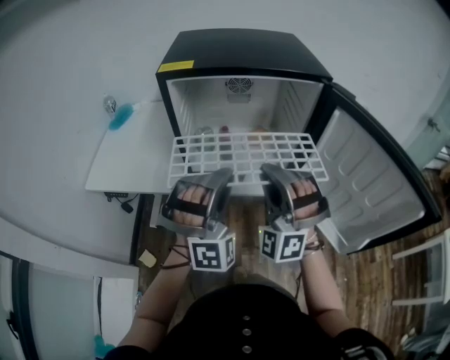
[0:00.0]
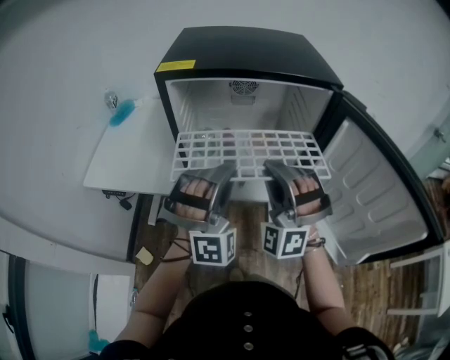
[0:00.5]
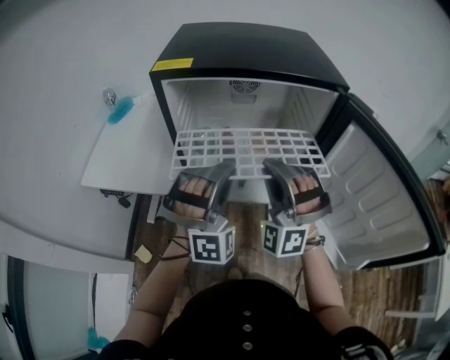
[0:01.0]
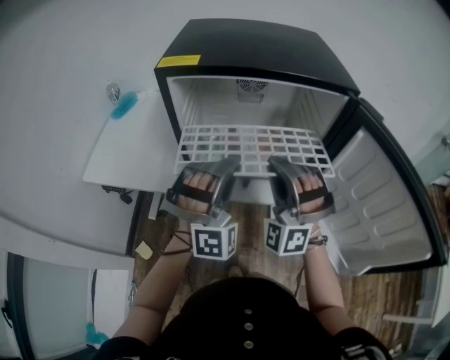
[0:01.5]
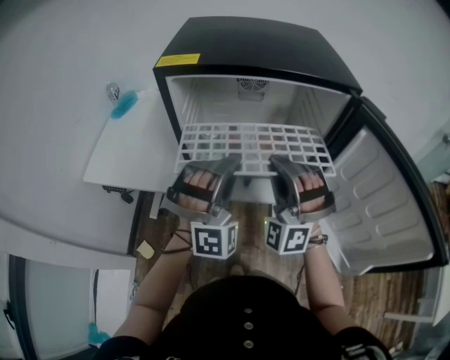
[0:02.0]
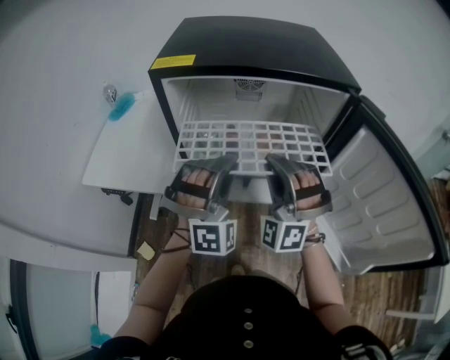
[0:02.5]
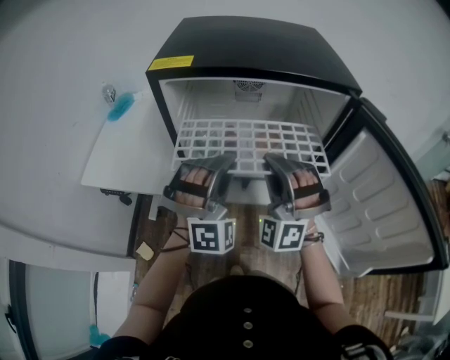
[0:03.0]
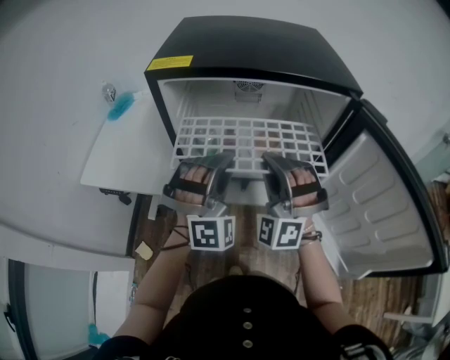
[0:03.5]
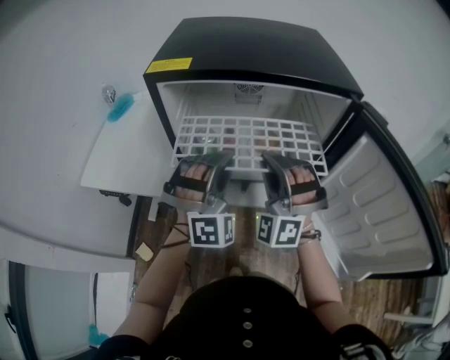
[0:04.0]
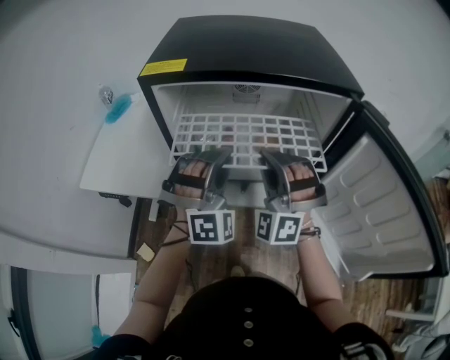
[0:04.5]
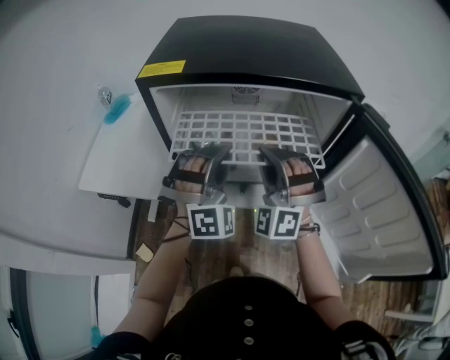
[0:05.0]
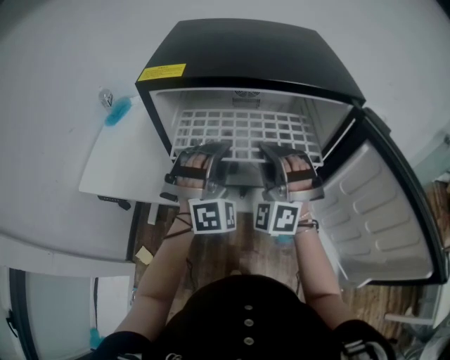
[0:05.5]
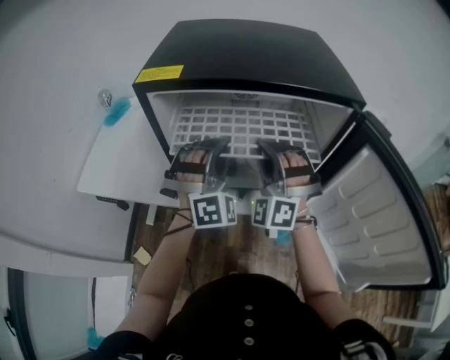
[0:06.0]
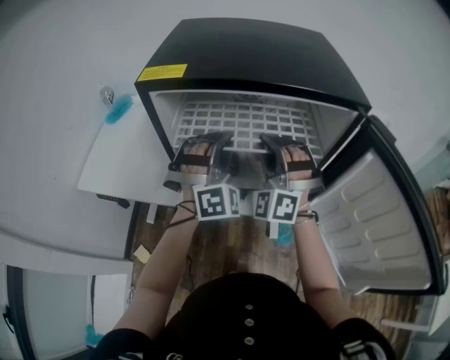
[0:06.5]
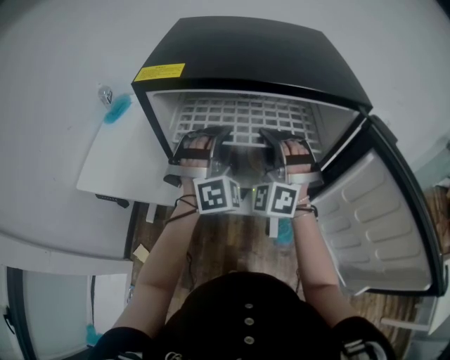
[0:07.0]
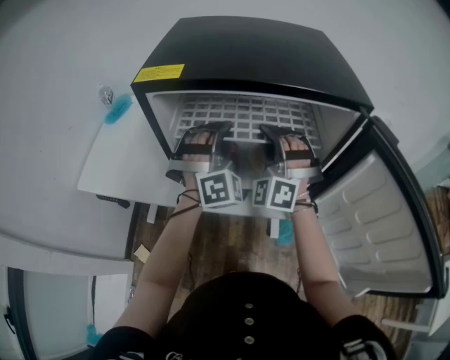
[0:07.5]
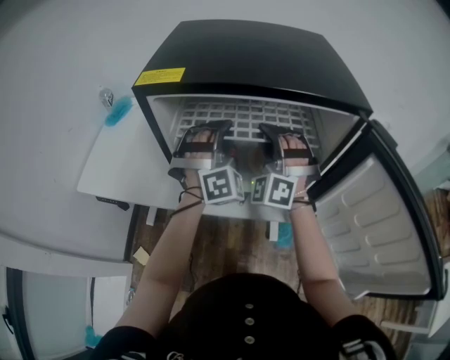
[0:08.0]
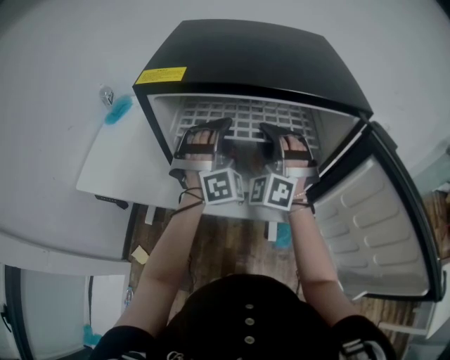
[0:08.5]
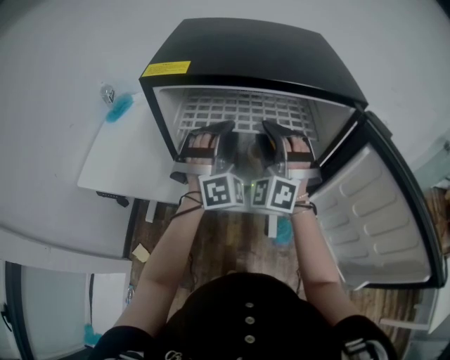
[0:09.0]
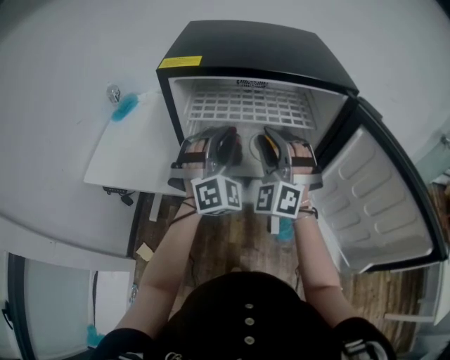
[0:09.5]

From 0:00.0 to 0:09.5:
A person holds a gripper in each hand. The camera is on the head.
From 0:00.0 to 0:02.0: The left gripper ends up roughly 10 cm from where it was.
From 0:04.0 to 0:05.5: The left gripper moves roughly 5 cm.
From 0:05.5 to 0:07.5: The left gripper shifts by roughly 5 cm.
From 0:07.5 to 0:09.5: The left gripper shifts by about 10 cm.

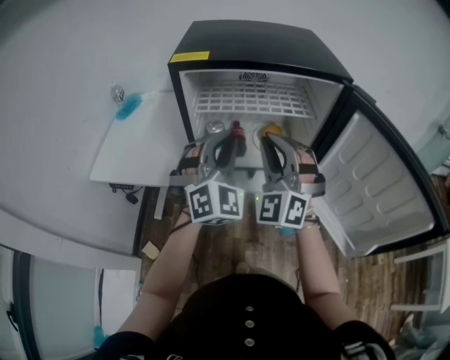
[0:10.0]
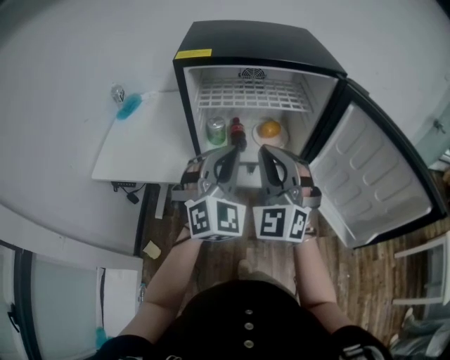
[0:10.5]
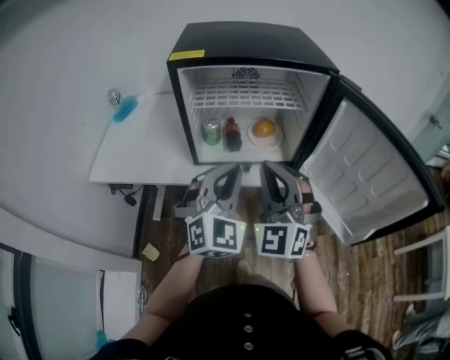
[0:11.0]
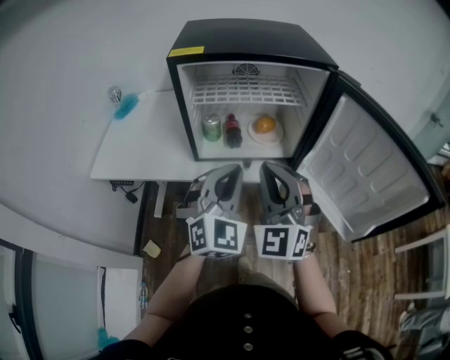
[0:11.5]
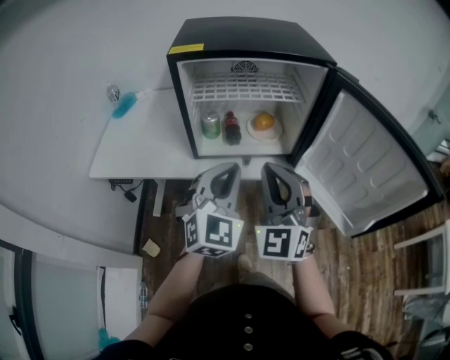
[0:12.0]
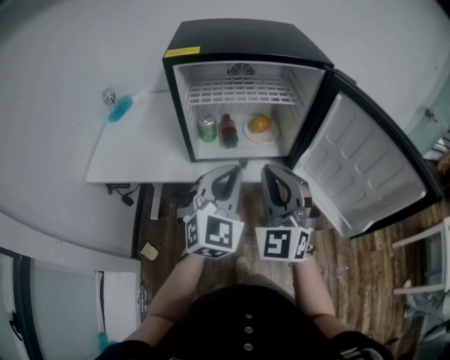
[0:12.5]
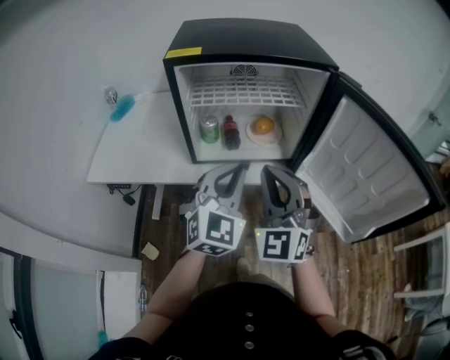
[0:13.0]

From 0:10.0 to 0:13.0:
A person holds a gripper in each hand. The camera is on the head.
From 0:10.0 to 0:11.5: The left gripper changes place by some 10 cm.

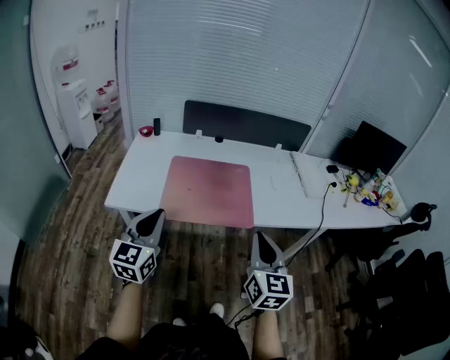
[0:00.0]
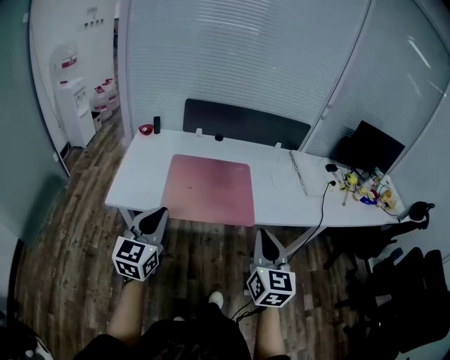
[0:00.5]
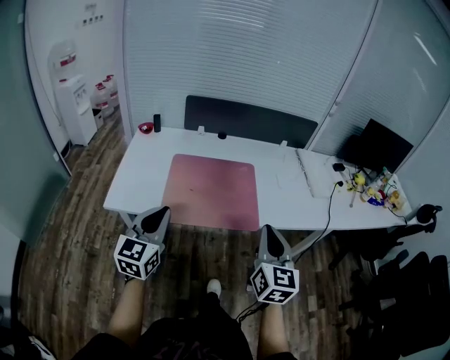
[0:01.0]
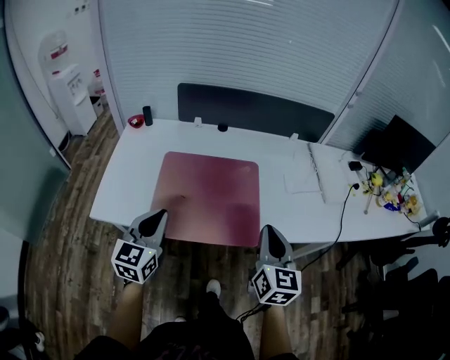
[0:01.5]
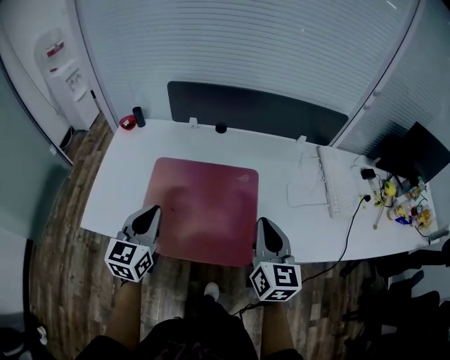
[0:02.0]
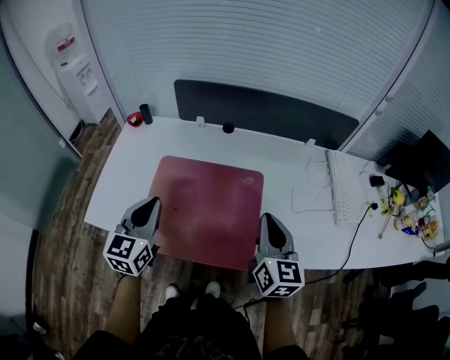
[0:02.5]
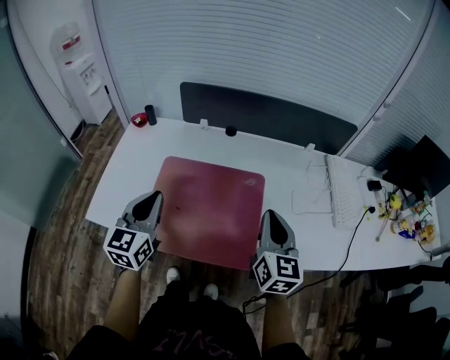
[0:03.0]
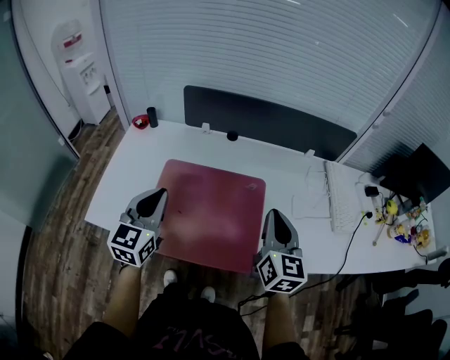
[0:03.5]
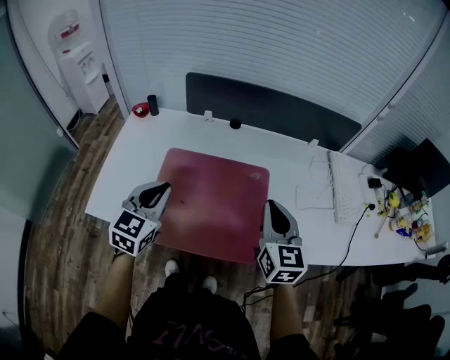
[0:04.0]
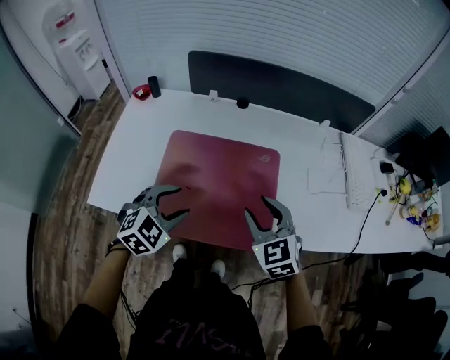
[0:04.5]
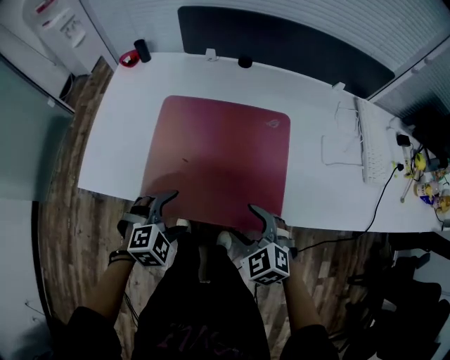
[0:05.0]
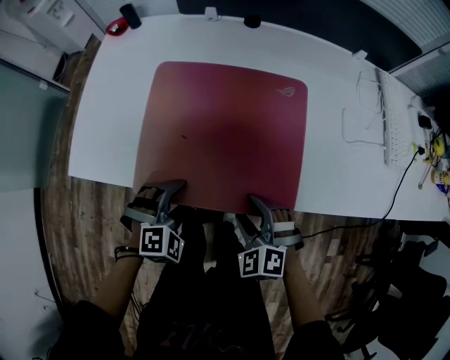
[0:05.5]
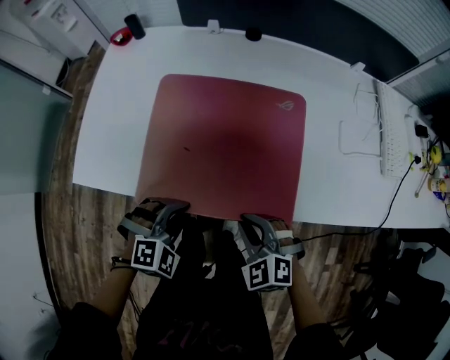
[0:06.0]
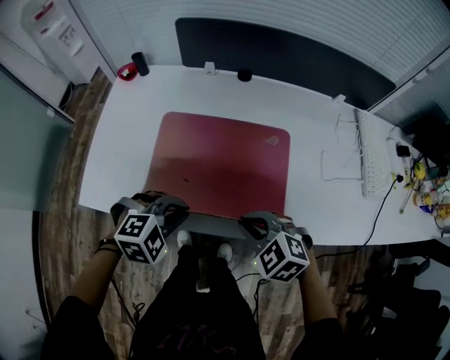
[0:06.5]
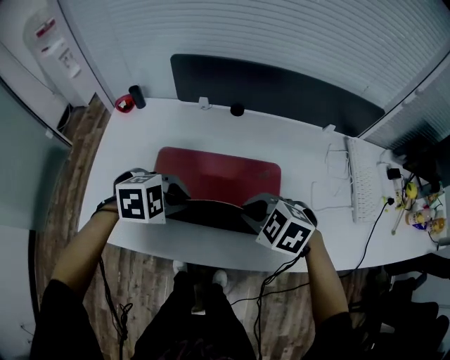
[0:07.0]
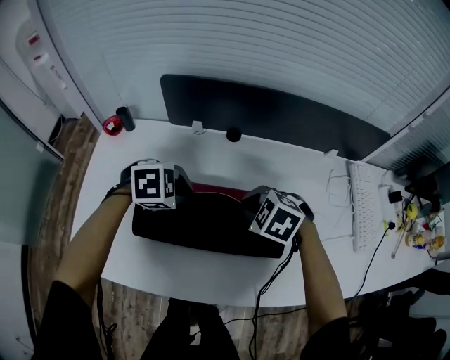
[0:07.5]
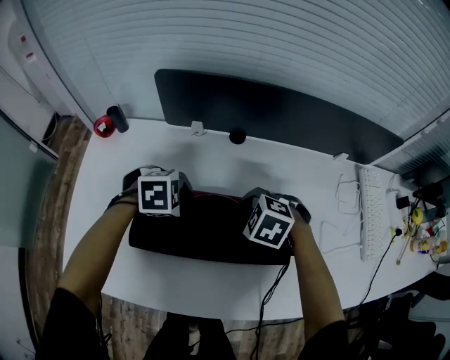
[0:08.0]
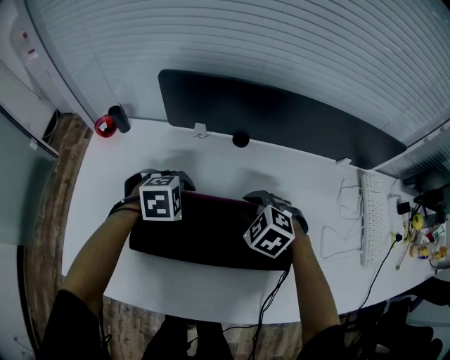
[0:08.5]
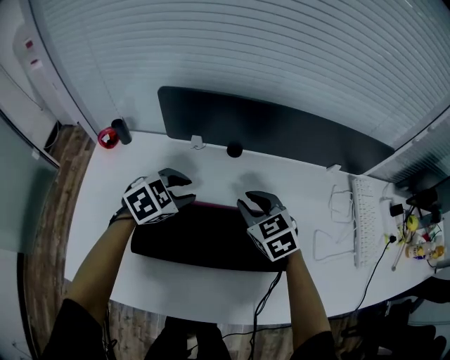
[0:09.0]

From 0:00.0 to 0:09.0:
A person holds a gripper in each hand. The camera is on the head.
From 0:00.0 to 0:02.0: The two grippers go some 30 cm forward.
From 0:02.0 to 0:04.5: The right gripper moves to the left and downward, approximately 10 cm, turns by some 40 degrees, and opens; the left gripper goes some 5 cm downward, swivels some 50 degrees, and opens.
From 0:04.5 to 0:07.0: The left gripper goes downward and returns, approximately 15 cm each way, changes its angle by some 40 degrees, and closes. Meanwhile the right gripper reaches about 20 cm downward, then returns, turns by some 40 degrees, and closes its fingers.
From 0:07.0 to 0:09.0: The left gripper shifts by approximately 25 cm, and turns by some 30 degrees, while the right gripper moves approximately 10 cm downward and comes back, and rotates roughly 40 degrees.

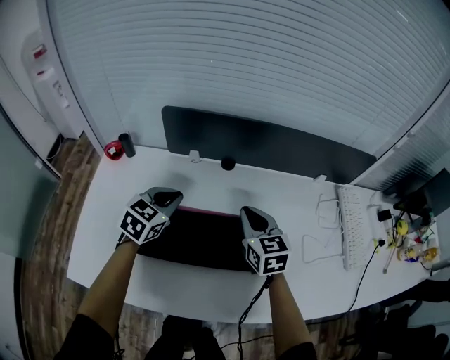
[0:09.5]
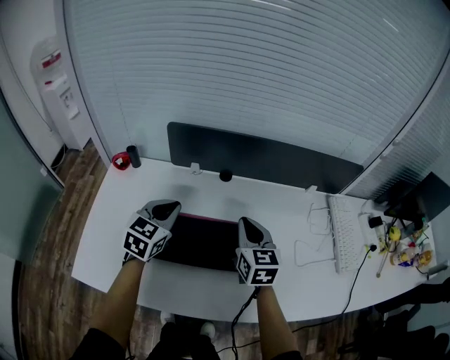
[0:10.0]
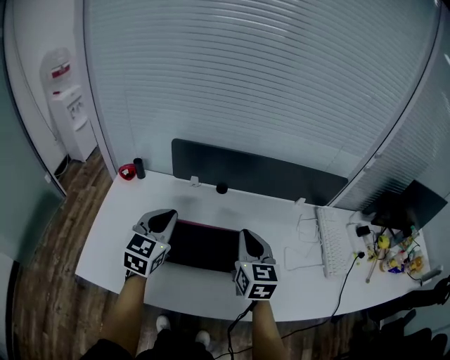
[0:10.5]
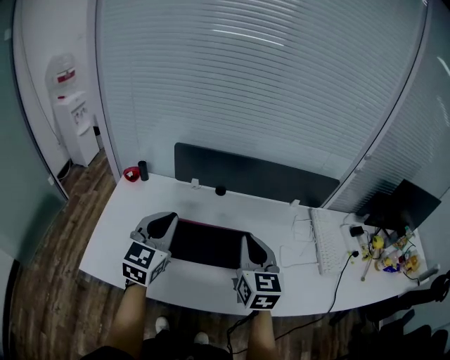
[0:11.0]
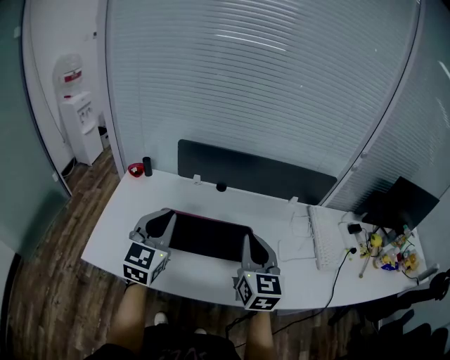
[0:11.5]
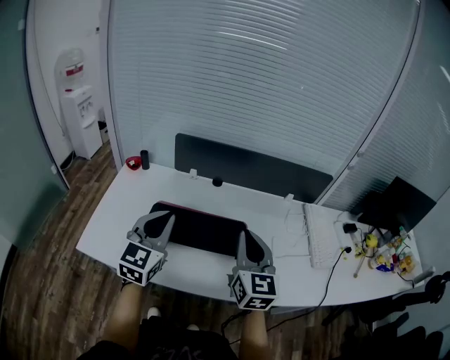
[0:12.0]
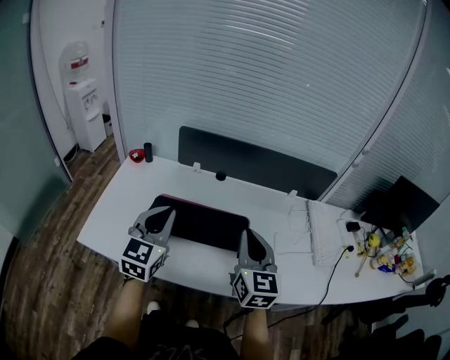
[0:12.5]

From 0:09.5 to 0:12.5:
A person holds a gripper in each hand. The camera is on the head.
From 0:09.5 to 0:11.0: The right gripper shifts roughly 25 cm backward and upward; the left gripper shifts about 25 cm upward and backward, and turns by some 30 degrees.
From 0:11.0 to 0:12.5: The grippers both shift backward by roughly 5 cm.

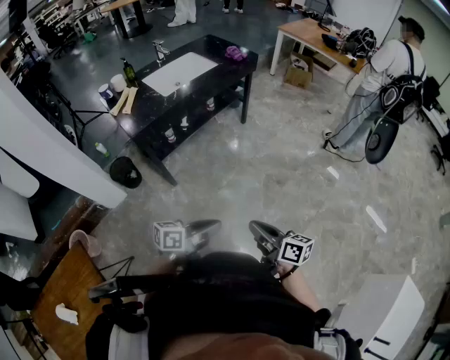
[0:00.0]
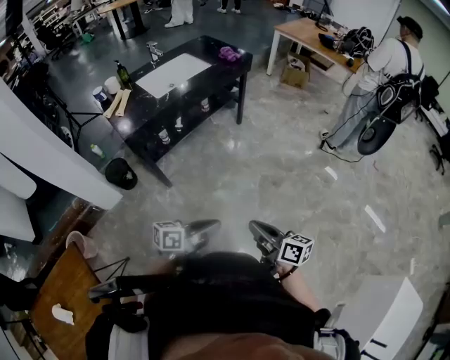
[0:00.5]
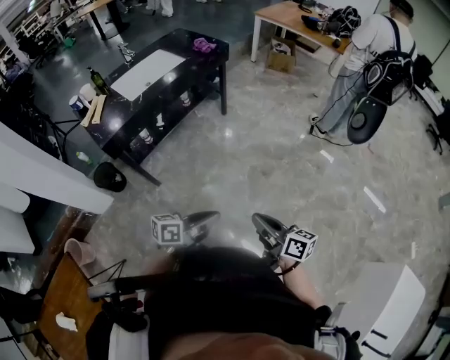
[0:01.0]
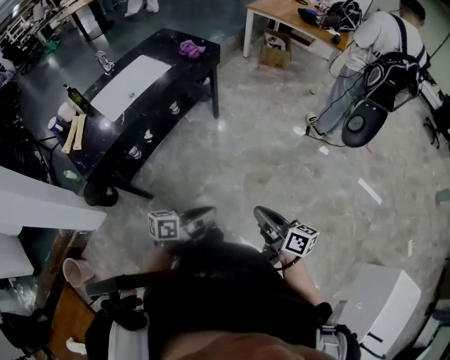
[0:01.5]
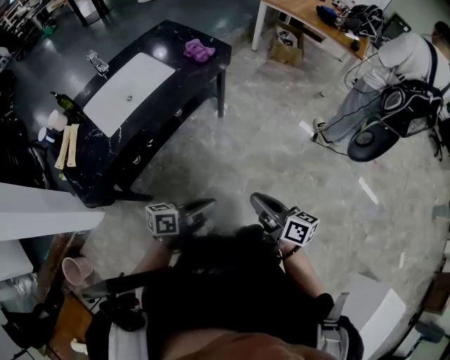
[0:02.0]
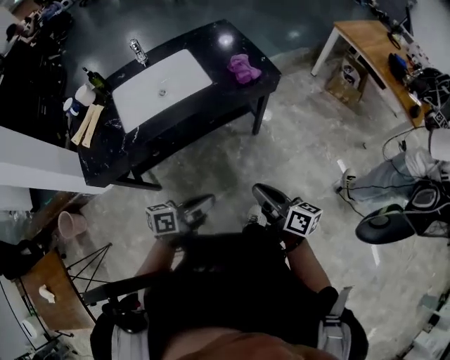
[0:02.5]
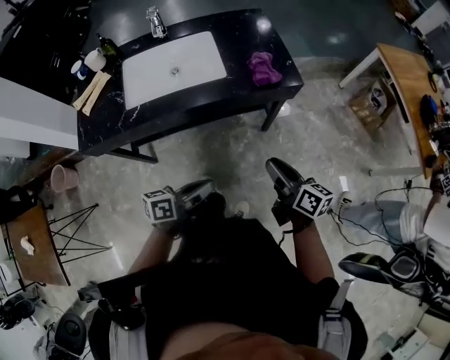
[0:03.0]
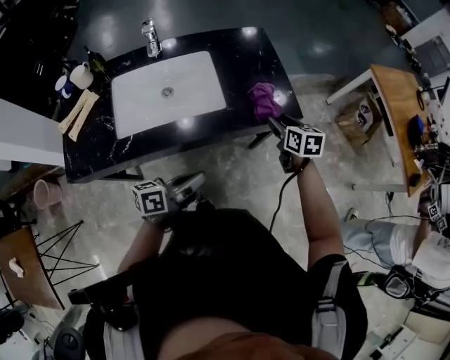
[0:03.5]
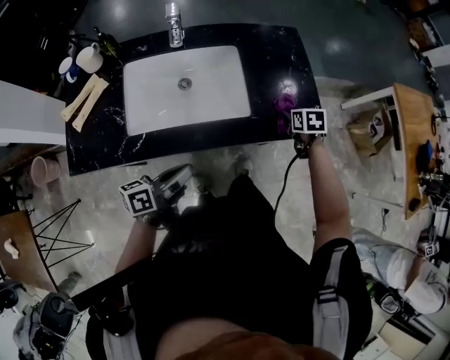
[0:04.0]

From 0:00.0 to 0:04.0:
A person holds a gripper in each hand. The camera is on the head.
From 0:00.0 to 0:02.0: The two grippers go some 40 cm forward.
From 0:02.0 to 0:04.0: The right gripper changes place by roughly 70 cm, points its fingers roughly 50 degrees further downward, and opens up. Meanwhile the left gripper ends up about 40 cm from where it was, and swivels approximately 50 degrees.
